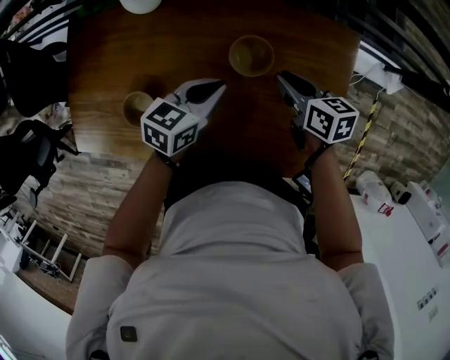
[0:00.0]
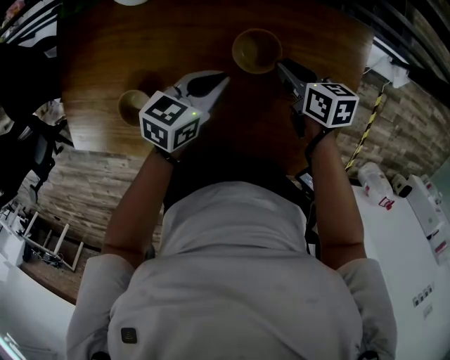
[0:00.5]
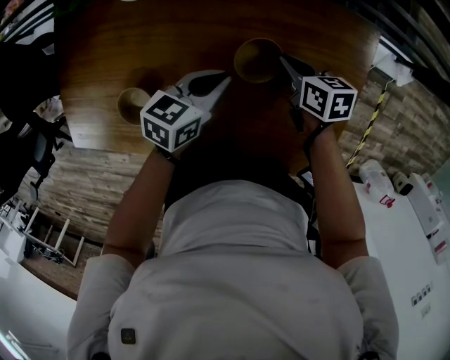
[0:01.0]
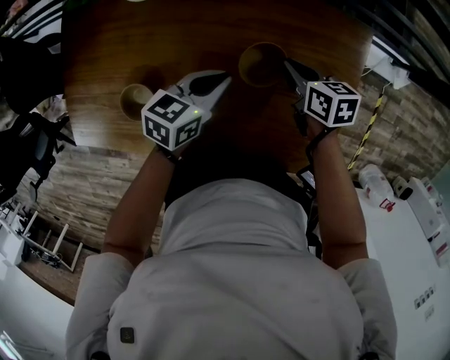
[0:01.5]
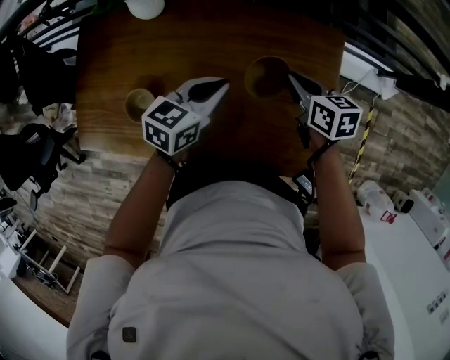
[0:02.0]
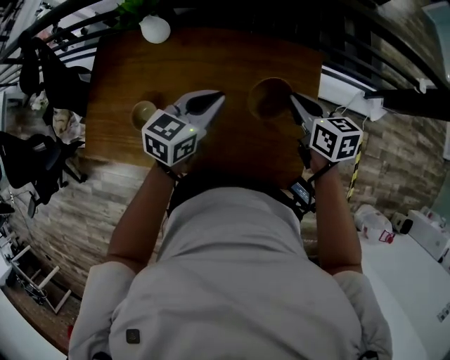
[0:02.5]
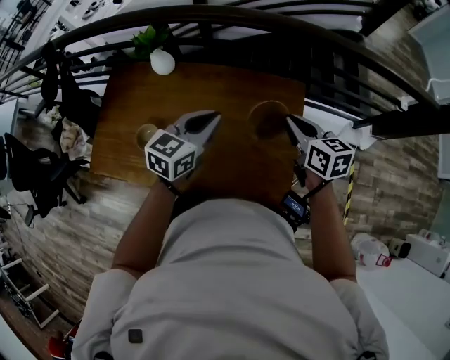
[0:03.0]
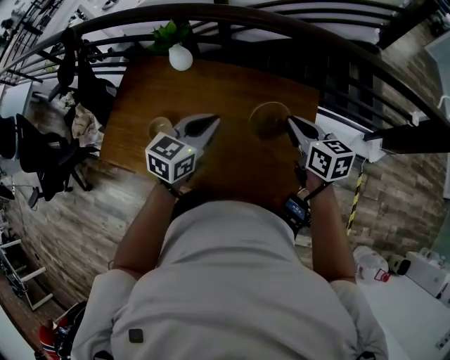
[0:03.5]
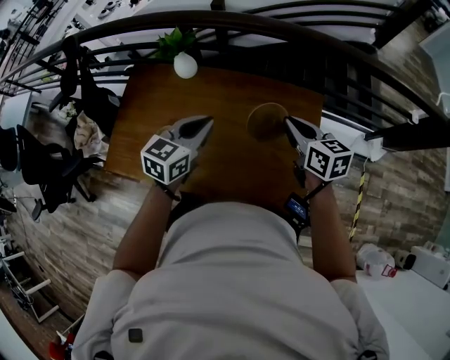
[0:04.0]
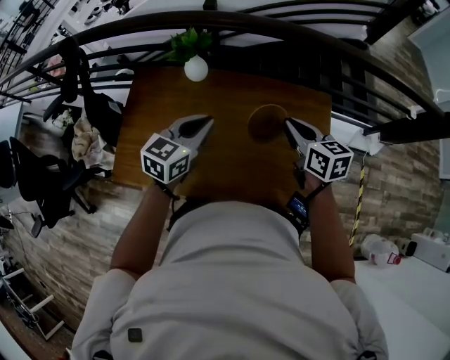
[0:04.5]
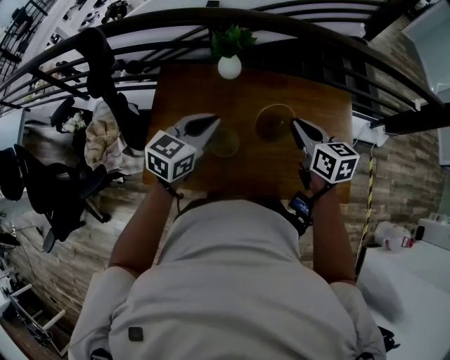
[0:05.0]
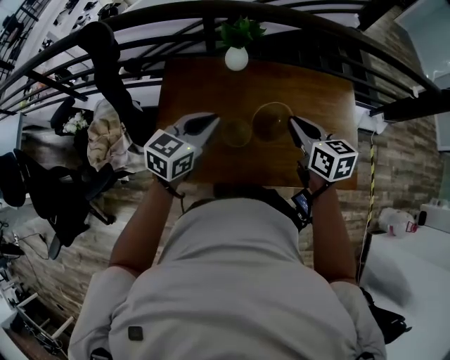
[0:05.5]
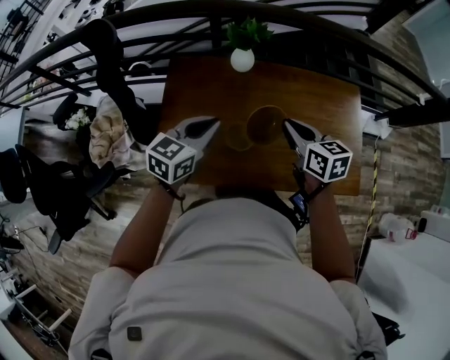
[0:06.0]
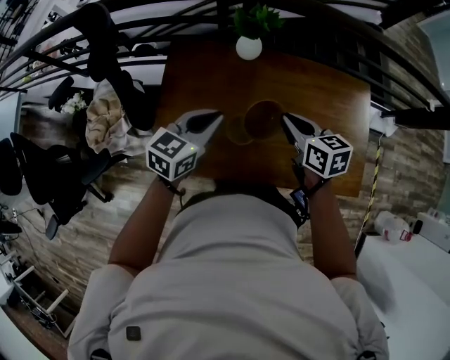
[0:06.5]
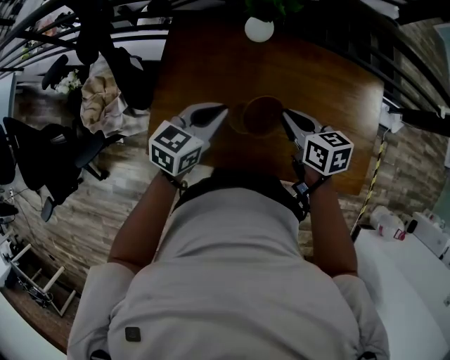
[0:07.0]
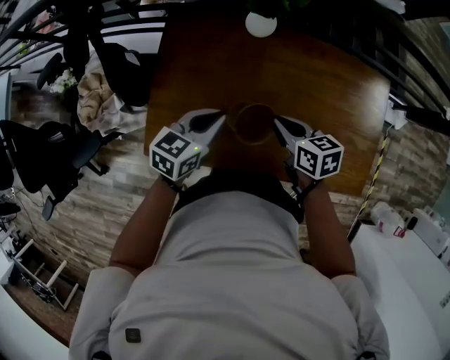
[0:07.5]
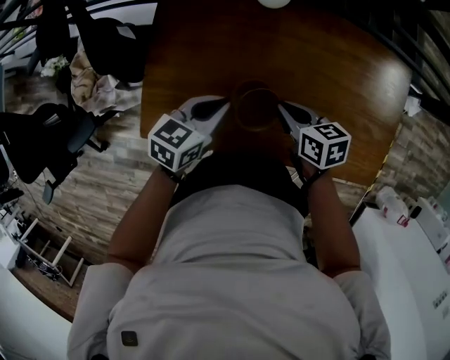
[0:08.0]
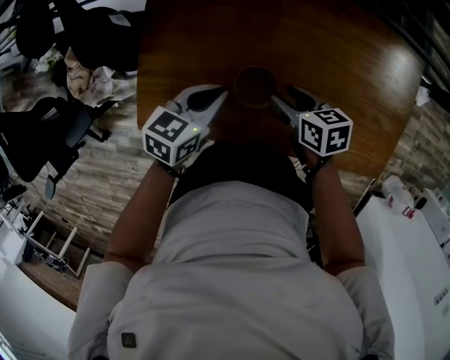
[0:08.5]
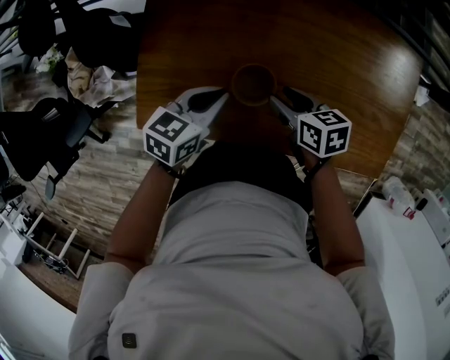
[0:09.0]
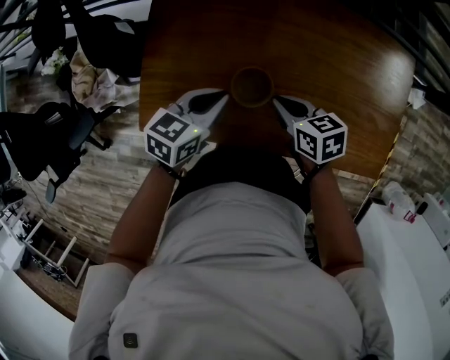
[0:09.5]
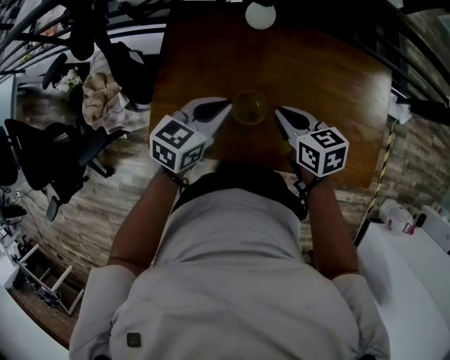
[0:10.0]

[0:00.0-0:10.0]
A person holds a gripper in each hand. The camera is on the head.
0.0 to 2.0 s: The grippers both shift upward by some 5 cm.
2.0 to 4.0 s: Both grippers move upward and backward, about 20 cm.
4.0 to 6.0 s: The grippers both shift to the left by some 35 cm.
6.0 to 8.0 s: Both grippers move downward, about 20 cm. The right gripper changes its angle by some 20 degrees.
8.0 to 10.0 s: Both grippers travel together upward, about 10 cm. The right gripper opens, then closes once more.

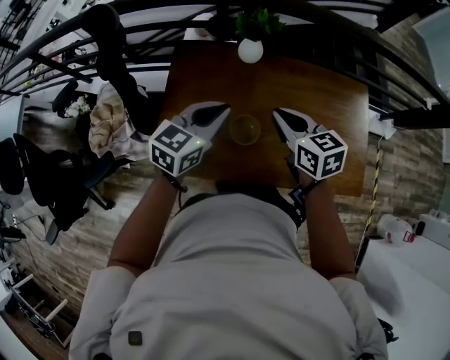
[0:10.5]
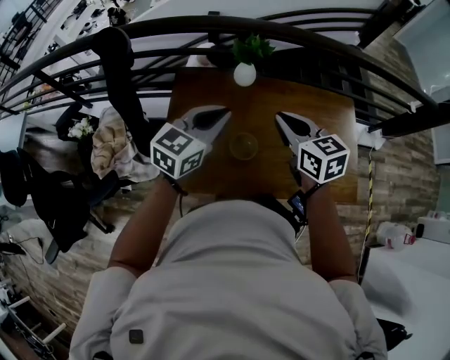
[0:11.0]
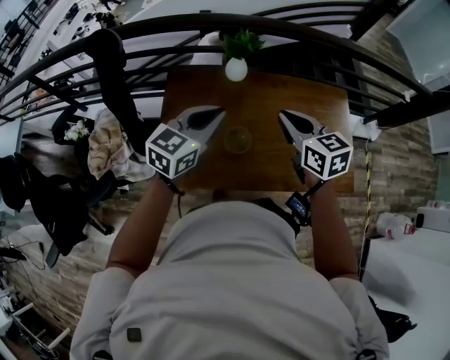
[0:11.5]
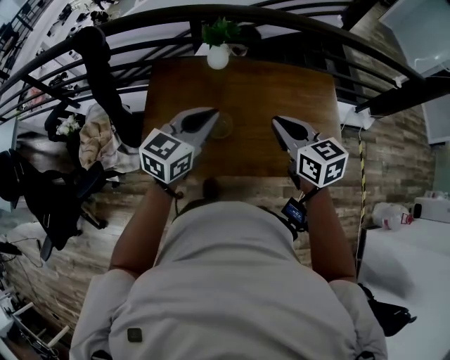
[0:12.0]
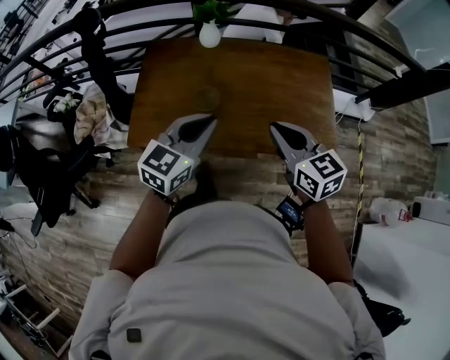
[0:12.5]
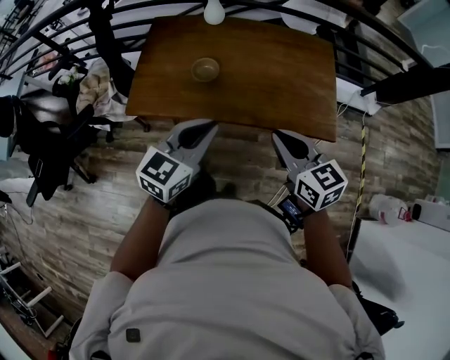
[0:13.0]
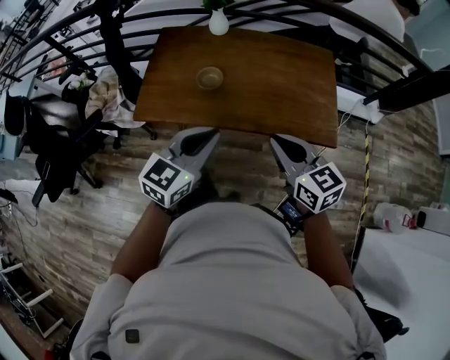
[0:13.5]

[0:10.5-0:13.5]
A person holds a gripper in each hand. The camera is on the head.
10.5 to 12.0 s: Both grippers move backward, to the right and upward, roughly 15 cm.
12.0 to 13.5 s: Both grippers travel together backward and to the right, approximately 30 cm.

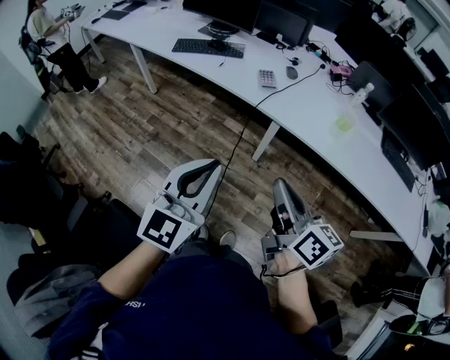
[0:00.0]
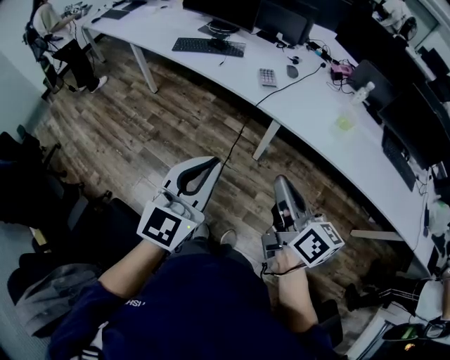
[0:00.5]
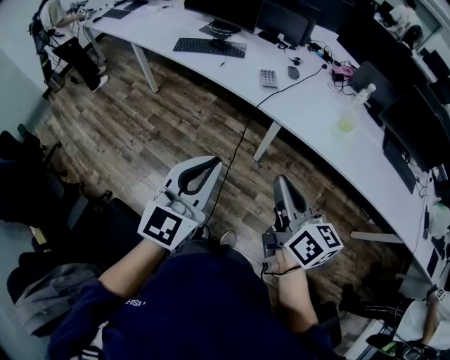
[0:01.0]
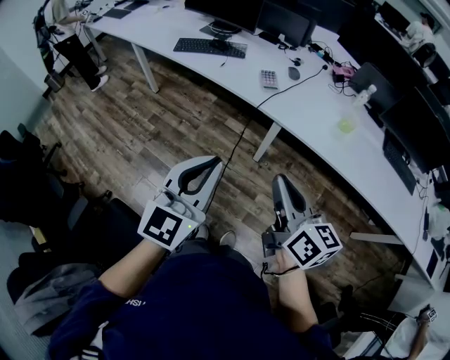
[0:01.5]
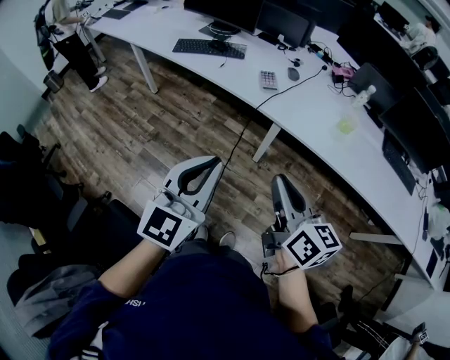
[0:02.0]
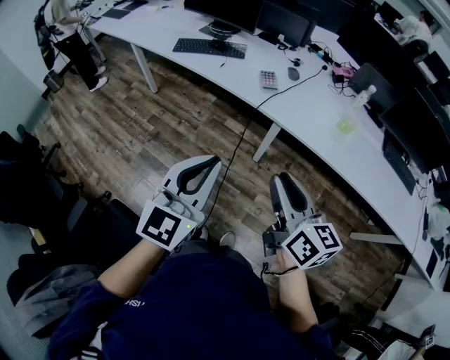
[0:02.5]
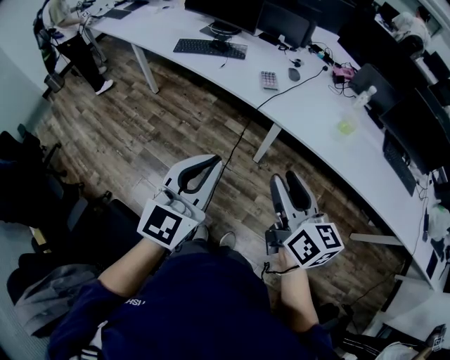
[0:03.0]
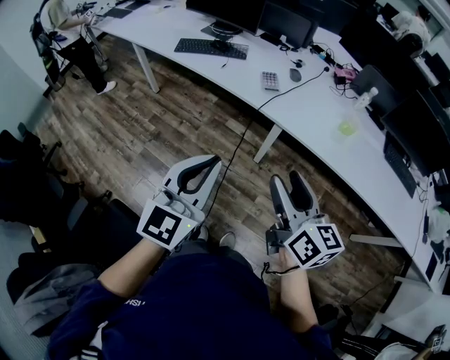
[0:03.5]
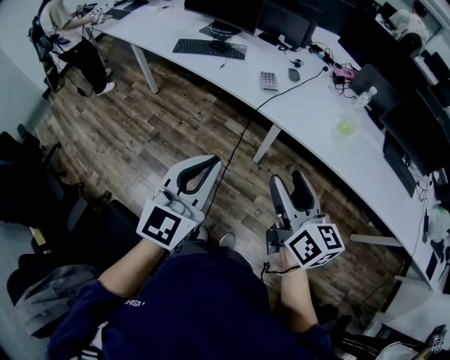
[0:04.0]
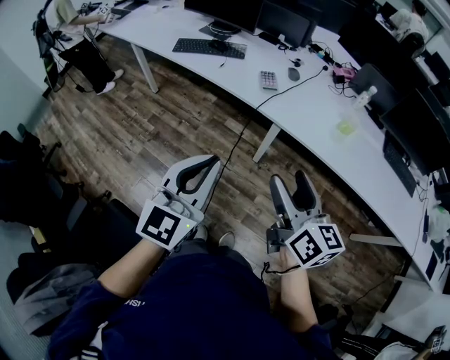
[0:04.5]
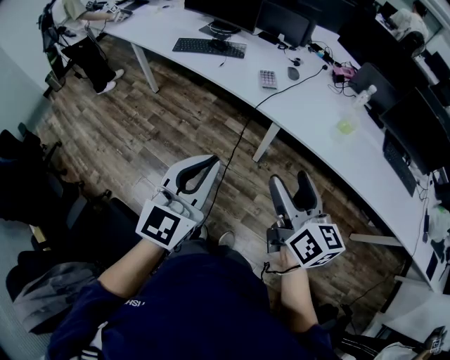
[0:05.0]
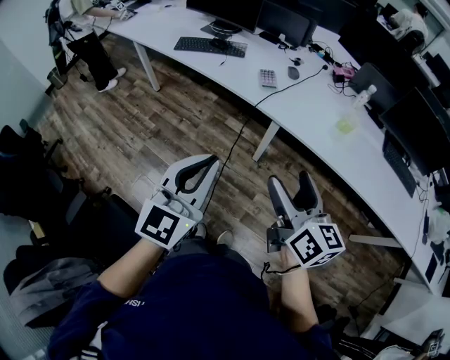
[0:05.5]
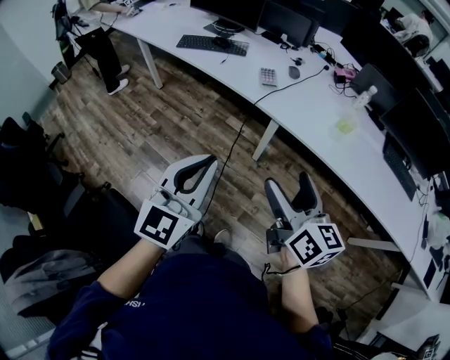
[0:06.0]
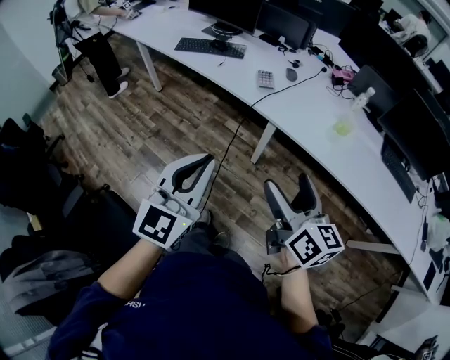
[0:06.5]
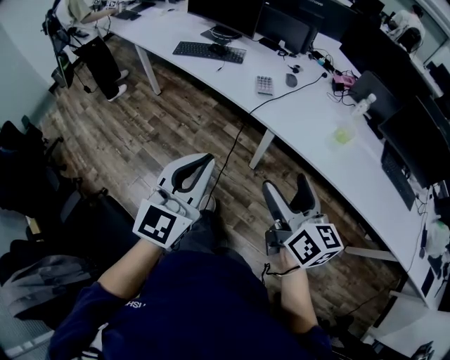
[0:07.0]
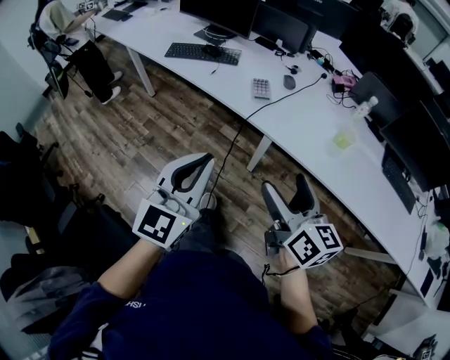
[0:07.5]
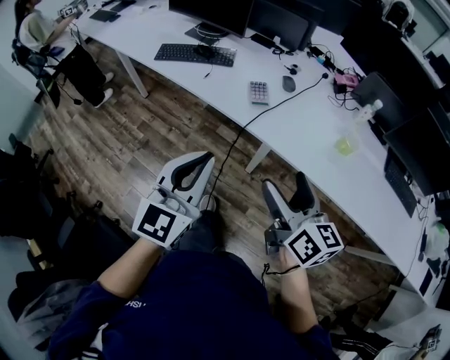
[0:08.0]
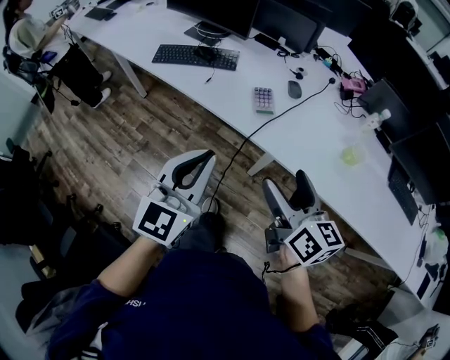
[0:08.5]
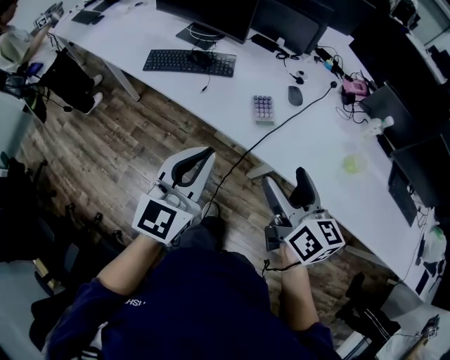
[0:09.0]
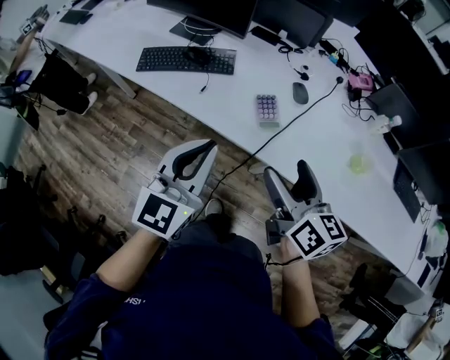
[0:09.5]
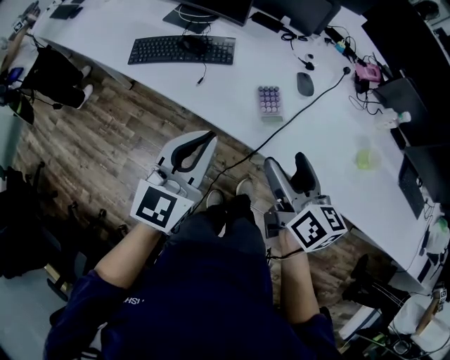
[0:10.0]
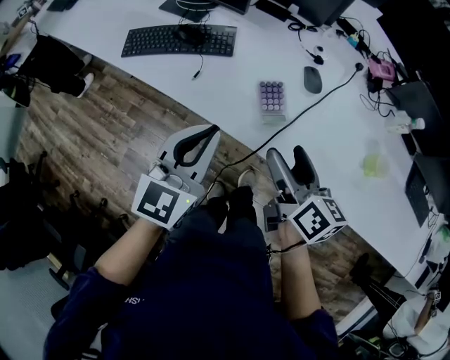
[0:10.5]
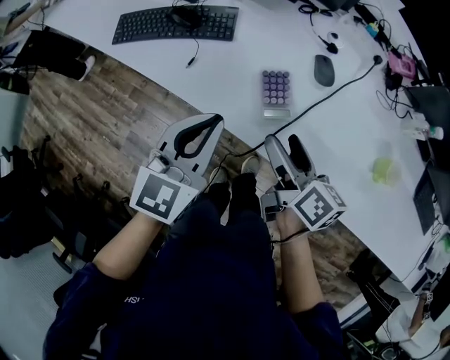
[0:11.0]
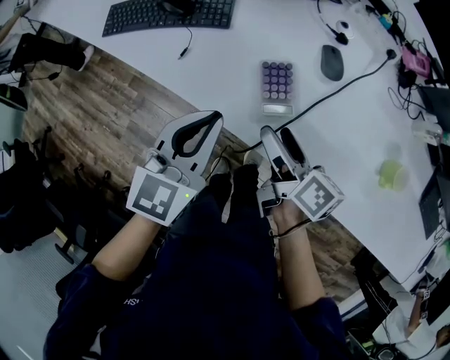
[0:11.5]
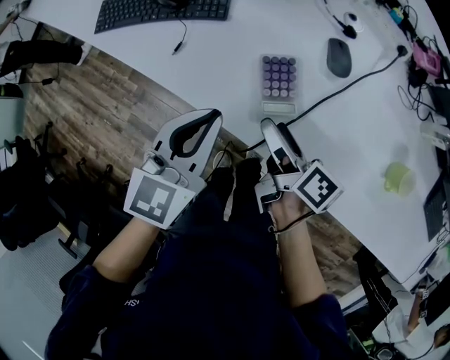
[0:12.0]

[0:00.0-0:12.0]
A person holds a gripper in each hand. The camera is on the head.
0.0 to 2.0 s: The grippers make only small movements.
2.0 to 4.0 s: The right gripper opens its fingers.
4.0 to 6.0 s: The right gripper opens up.
6.0 to 8.0 s: Both grippers move forward, about 15 cm.
8.0 to 10.0 s: The two grippers go approximately 25 cm forward.
10.0 to 12.0 s: The left gripper is displaced downward, forward and to the right by some 15 cm, while the right gripper moves downward and forward, roughly 20 cm, and rotates some 40 degrees.

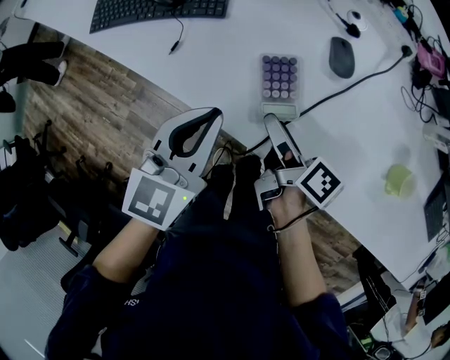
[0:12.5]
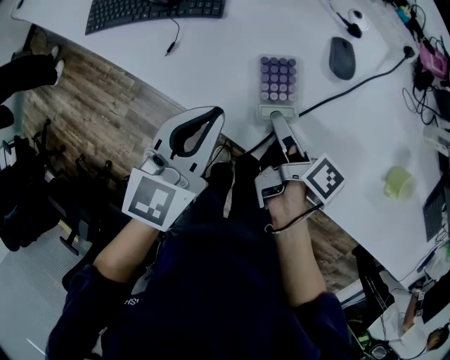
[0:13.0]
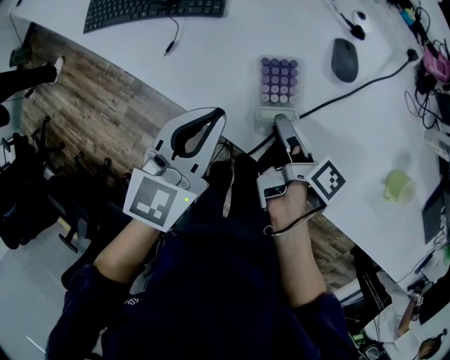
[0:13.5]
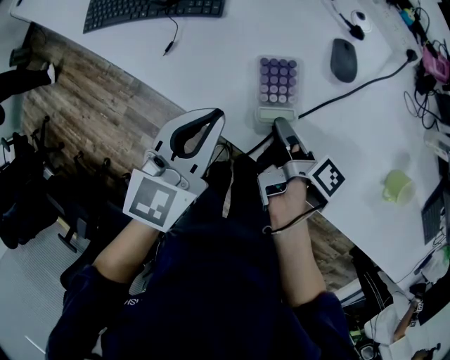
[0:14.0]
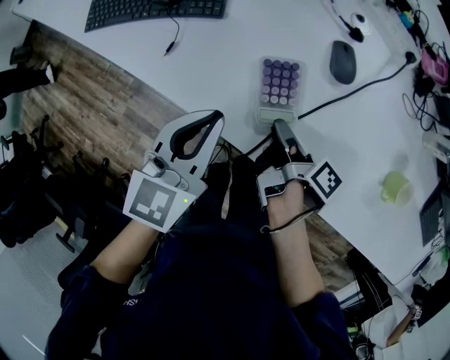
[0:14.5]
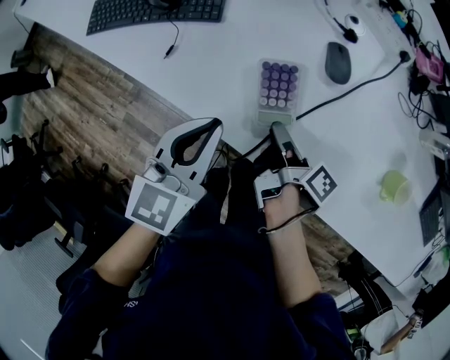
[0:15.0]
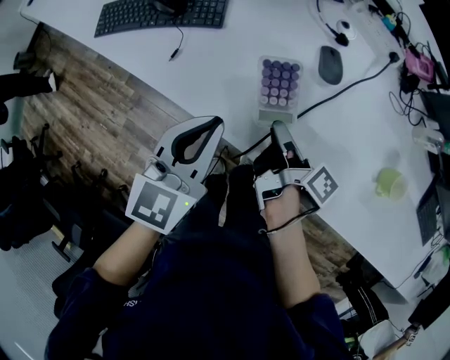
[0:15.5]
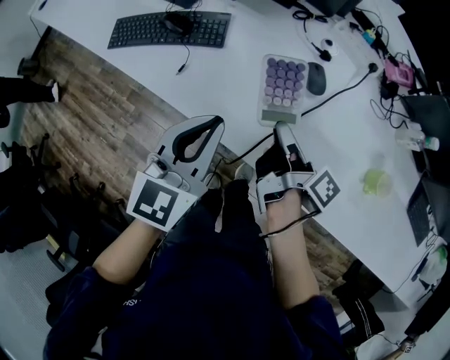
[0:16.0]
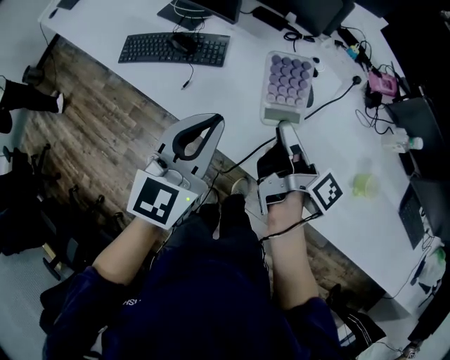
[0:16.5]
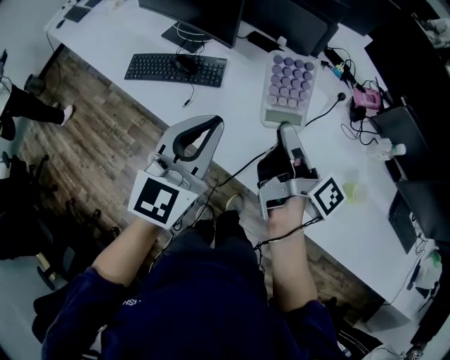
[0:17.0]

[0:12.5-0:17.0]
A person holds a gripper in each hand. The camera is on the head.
12.5 to 14.5 s: The right gripper moves about 5 cm, turns by some 30 degrees, and closes its fingers.
14.5 to 17.0 s: Both grippers move upward, approximately 25 cm. The right gripper angles its fingers upward, by some 30 degrees; the left gripper swivels about 20 degrees.
